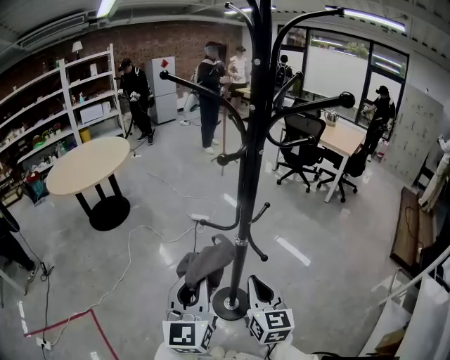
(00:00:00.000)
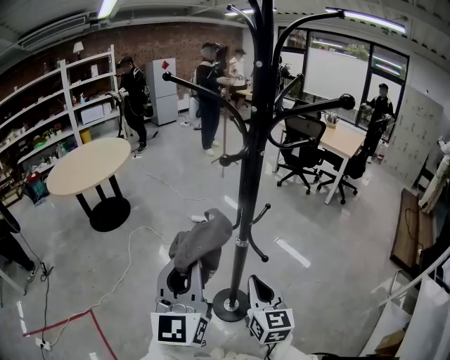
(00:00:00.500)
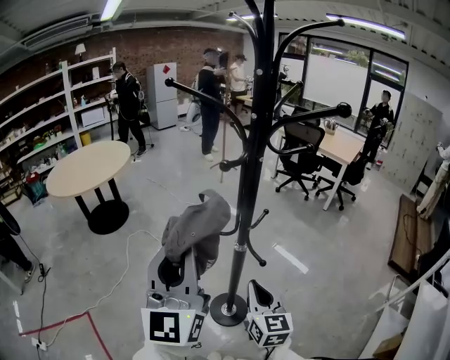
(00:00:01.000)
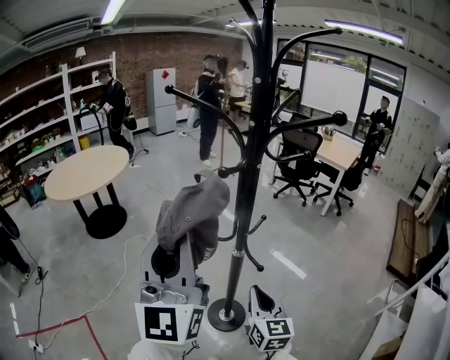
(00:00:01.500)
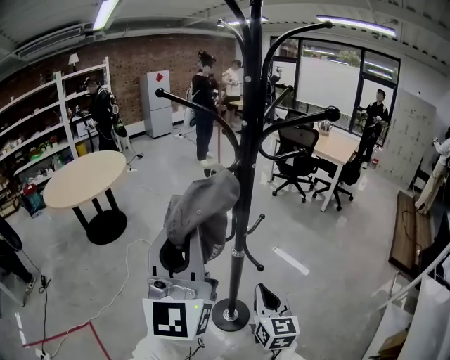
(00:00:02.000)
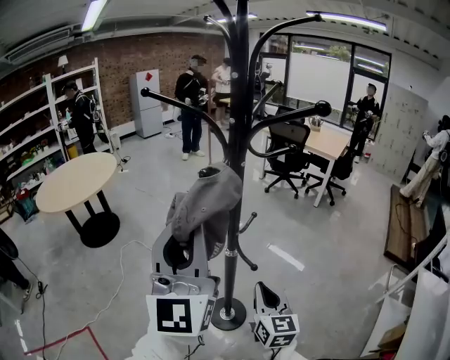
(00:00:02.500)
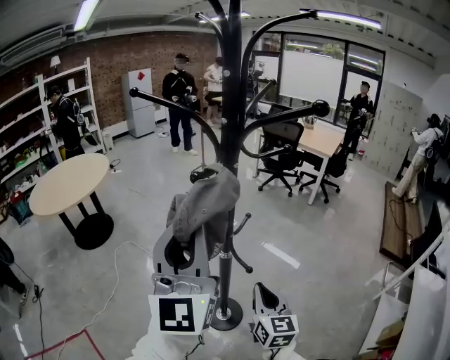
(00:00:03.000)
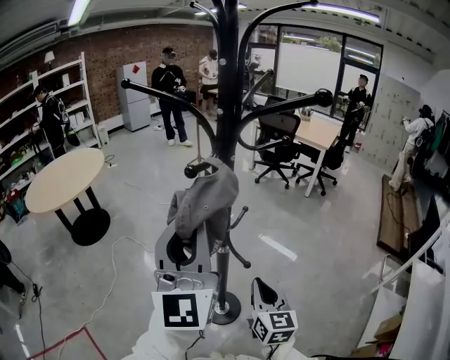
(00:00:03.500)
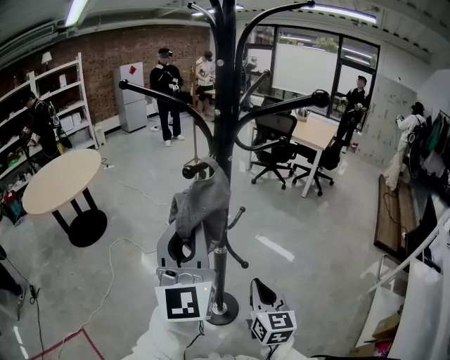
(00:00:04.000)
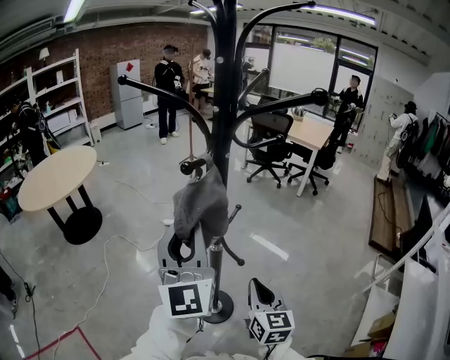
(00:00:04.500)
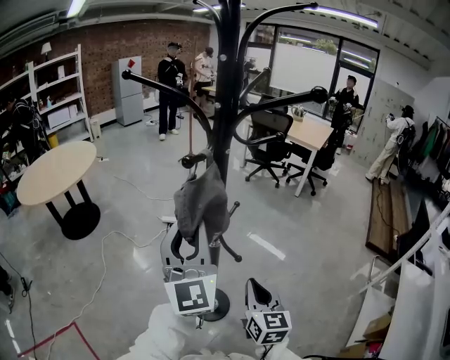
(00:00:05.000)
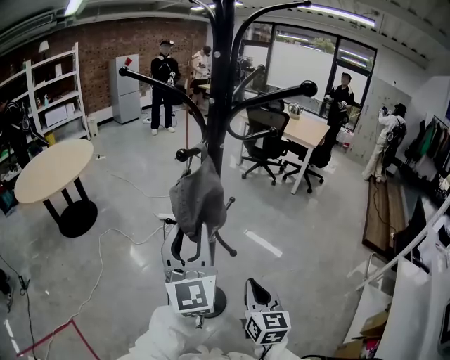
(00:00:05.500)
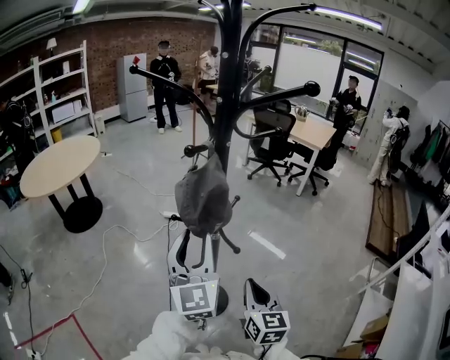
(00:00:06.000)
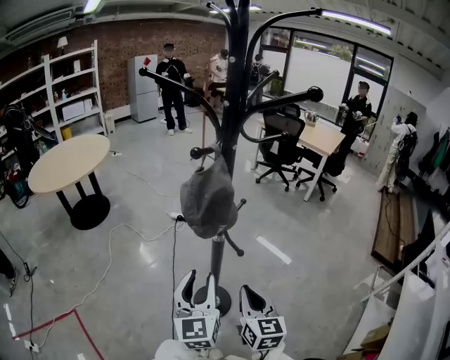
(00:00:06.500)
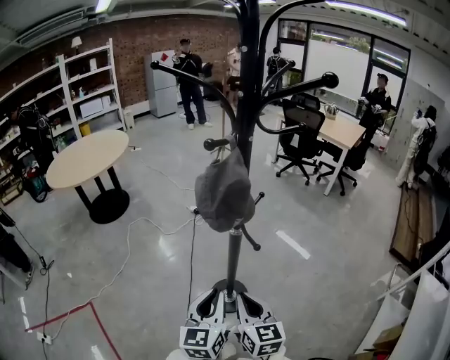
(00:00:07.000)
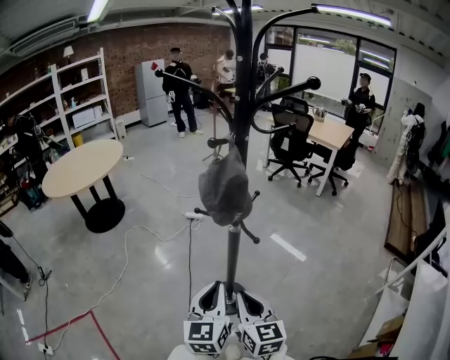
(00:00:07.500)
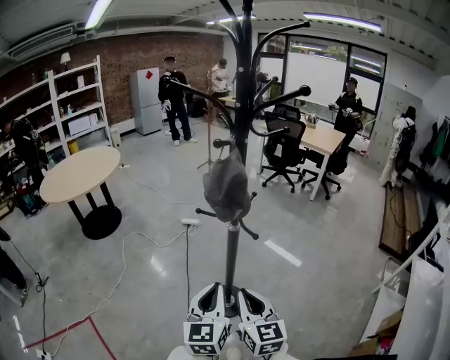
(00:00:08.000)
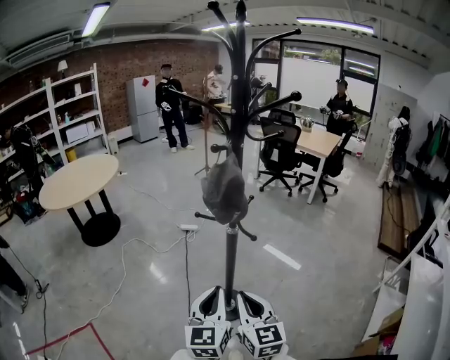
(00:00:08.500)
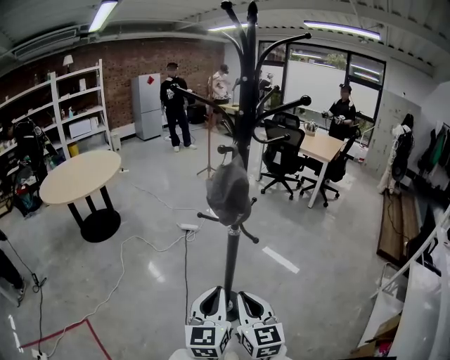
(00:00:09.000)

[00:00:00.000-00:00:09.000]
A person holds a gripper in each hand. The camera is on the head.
00:00:00.000 to 00:00:02.000: The left gripper travels upward by some 20 cm, and rotates approximately 30 degrees.
00:00:02.000 to 00:00:04.500: The left gripper shifts roughly 10 cm downward and forward.
00:00:04.500 to 00:00:07.000: The left gripper shifts about 25 cm downward and backward, points its fingers about 30 degrees further downward, and opens and closes again, while the right gripper travels to the left and backward by about 10 cm.
00:00:07.000 to 00:00:09.000: The left gripper ends up about 5 cm from where it was; the right gripper shifts roughly 5 cm upward.

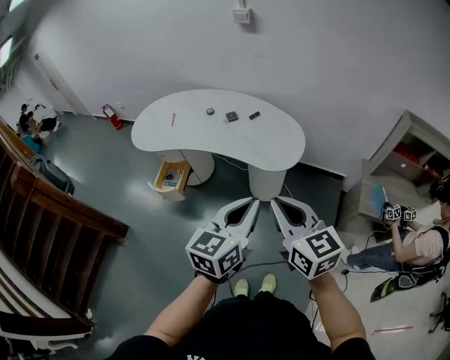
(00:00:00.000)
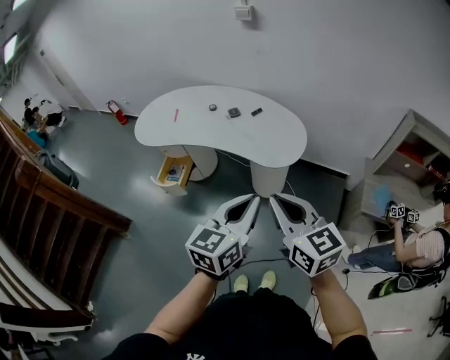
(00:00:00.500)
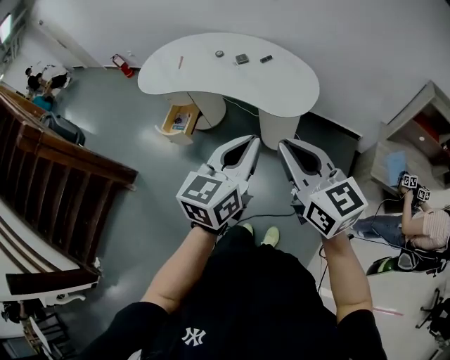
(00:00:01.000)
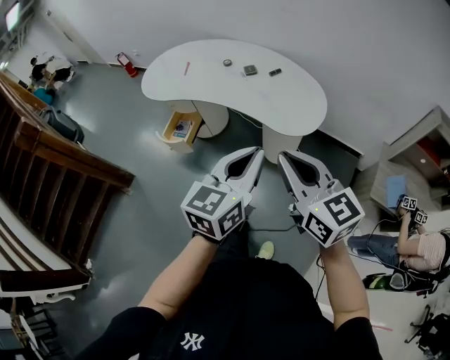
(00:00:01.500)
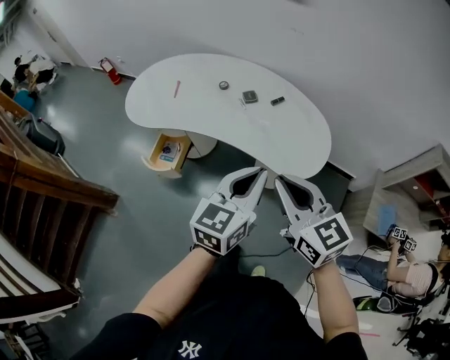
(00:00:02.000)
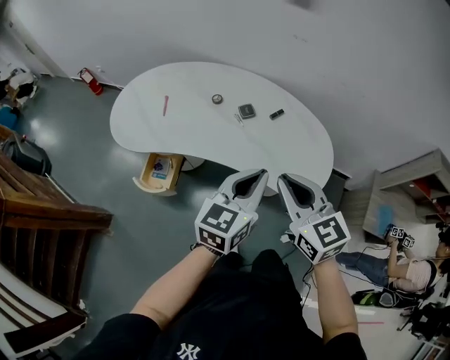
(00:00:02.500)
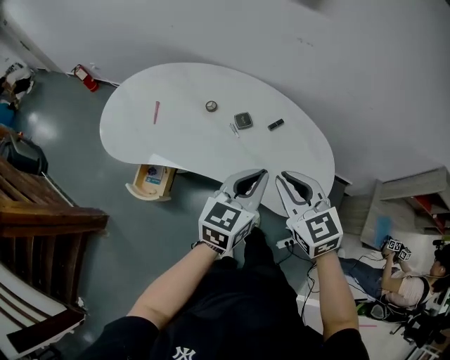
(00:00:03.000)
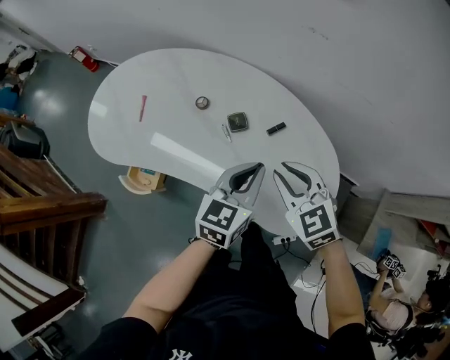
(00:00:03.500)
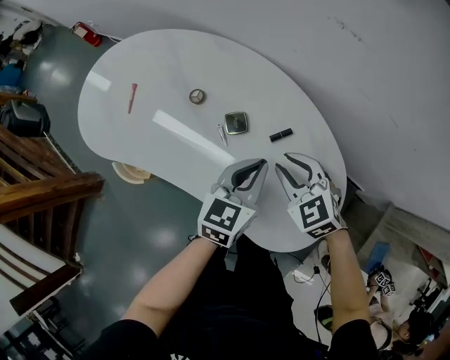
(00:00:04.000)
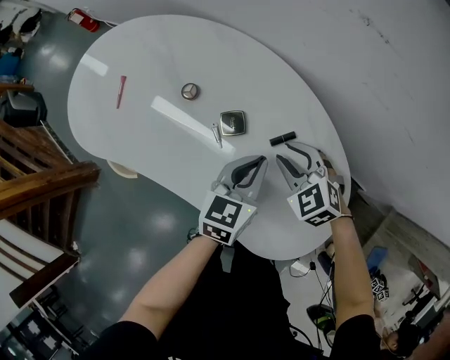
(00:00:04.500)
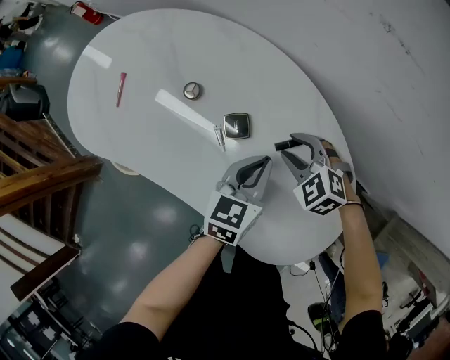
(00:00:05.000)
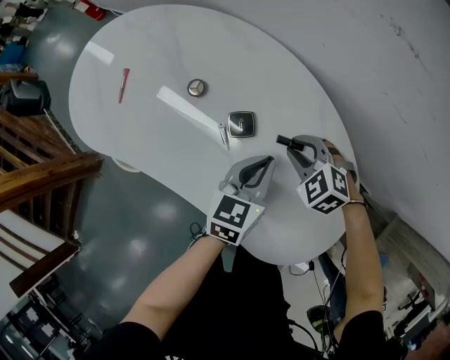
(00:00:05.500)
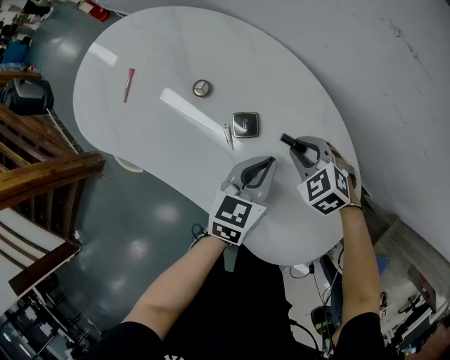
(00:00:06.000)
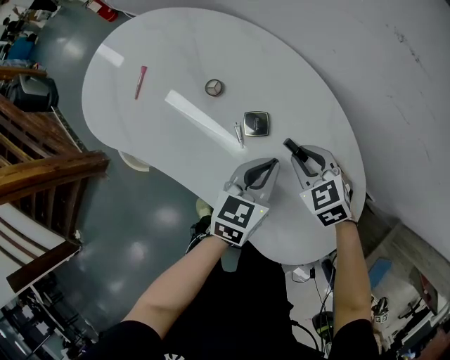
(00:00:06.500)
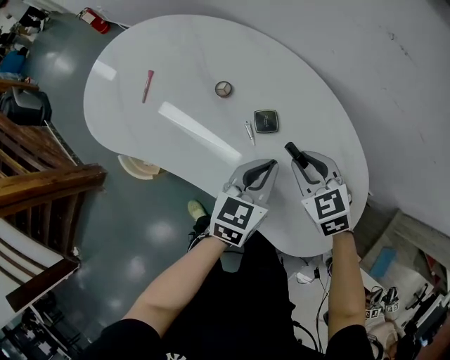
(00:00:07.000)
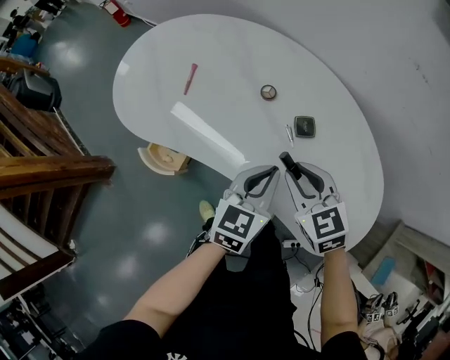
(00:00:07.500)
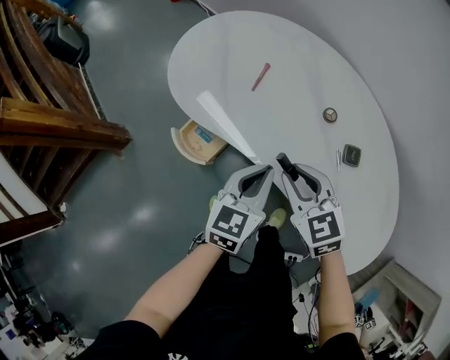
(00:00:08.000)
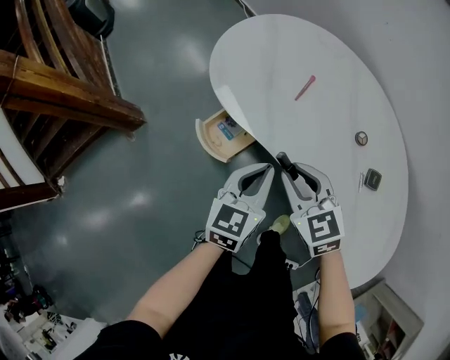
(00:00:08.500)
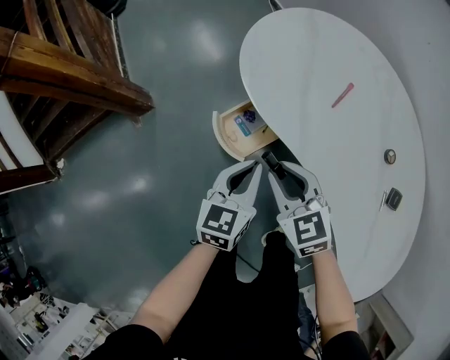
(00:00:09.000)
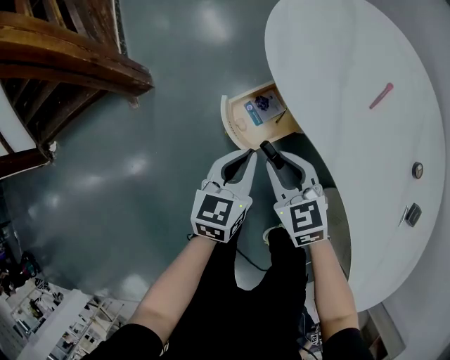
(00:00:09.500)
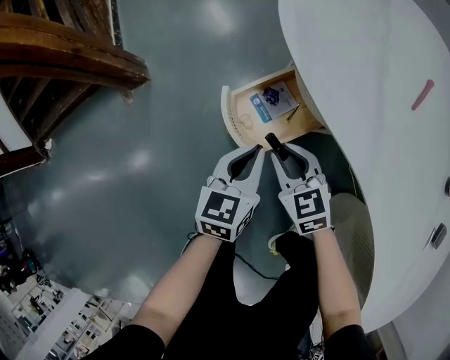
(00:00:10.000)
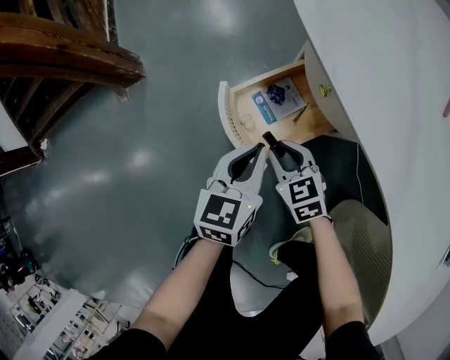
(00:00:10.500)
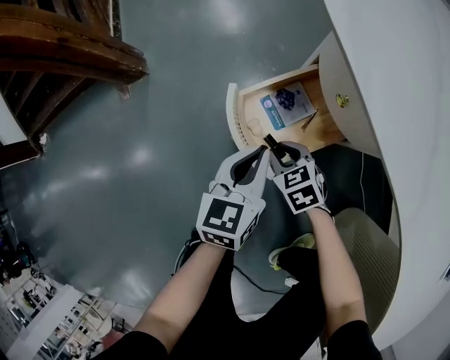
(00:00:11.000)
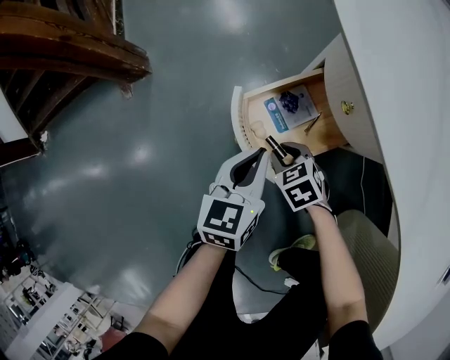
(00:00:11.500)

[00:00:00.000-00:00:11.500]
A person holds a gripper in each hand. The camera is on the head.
00:00:00.000 to 00:00:02.000: The grippers both shift forward by some 20 cm.
00:00:02.000 to 00:00:04.000: The grippers both shift forward and downward by roughly 40 cm. The right gripper rotates some 40 degrees, and opens up.
00:00:04.000 to 00:00:06.000: The right gripper goes some 15 cm downward and forward; the left gripper is displaced downward by some 10 cm.
00:00:06.000 to 00:00:07.500: The right gripper moves to the left, upward and backward, about 25 cm, and rotates approximately 30 degrees; the left gripper heads to the left and upward, covering roughly 20 cm.
00:00:07.500 to 00:00:09.500: Both grippers are carried roughly 40 cm. The left gripper rotates some 40 degrees. The right gripper swivels some 30 degrees.
00:00:09.500 to 00:00:11.500: The right gripper travels downward by roughly 35 cm, and rotates approximately 30 degrees. The left gripper is displaced downward by about 20 cm.

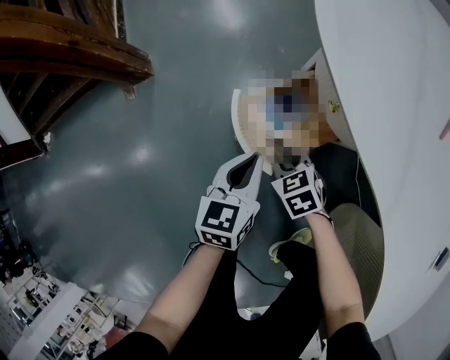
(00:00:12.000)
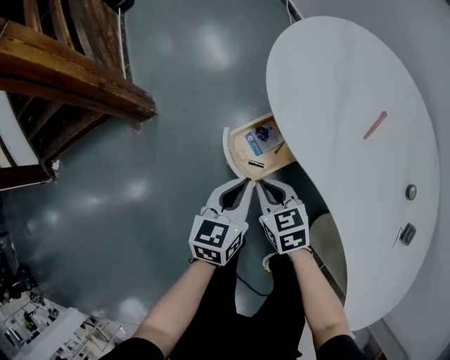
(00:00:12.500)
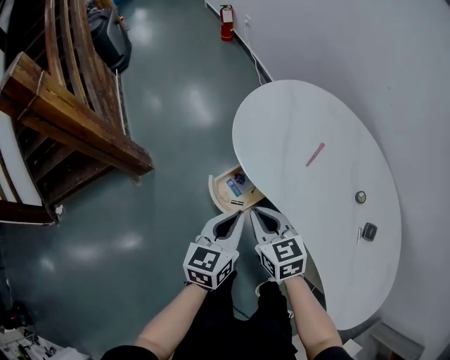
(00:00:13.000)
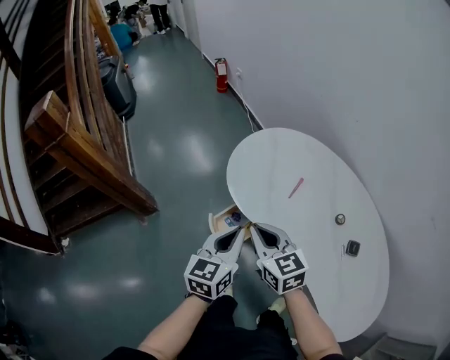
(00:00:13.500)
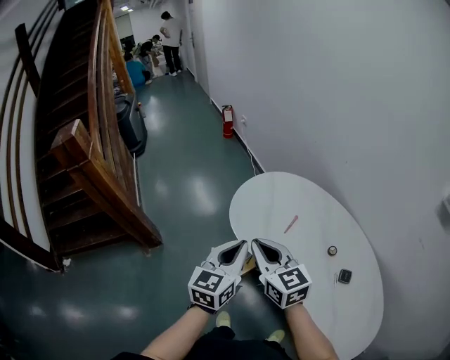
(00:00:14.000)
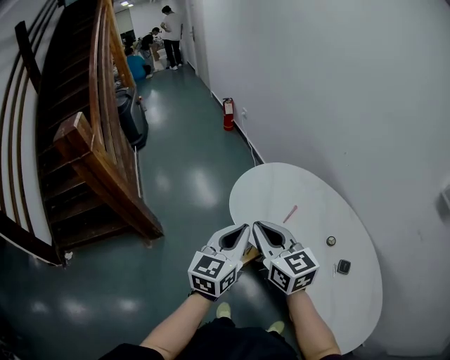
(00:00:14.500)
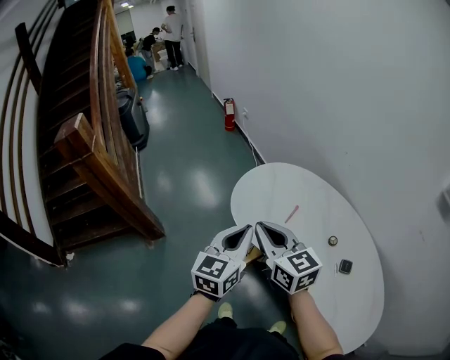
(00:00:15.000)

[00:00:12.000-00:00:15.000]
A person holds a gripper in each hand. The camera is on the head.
00:00:12.000 to 00:00:13.500: The grippers both shift upward by about 50 cm. The left gripper swivels about 20 degrees; the right gripper tips its fingers upward by about 40 degrees.
00:00:13.500 to 00:00:15.000: The two grippers go about 15 cm upward.

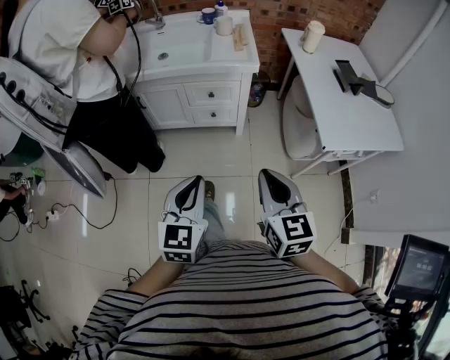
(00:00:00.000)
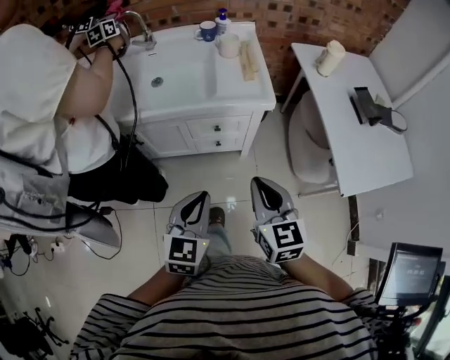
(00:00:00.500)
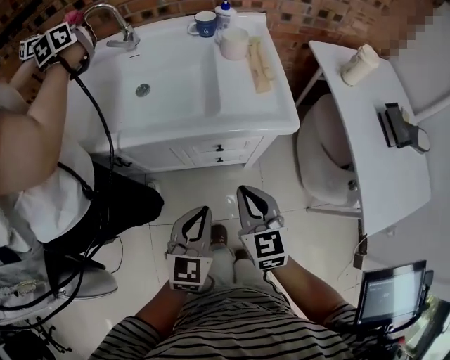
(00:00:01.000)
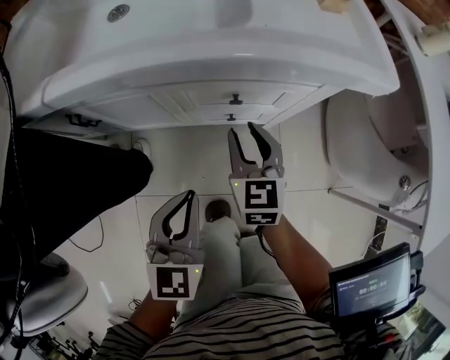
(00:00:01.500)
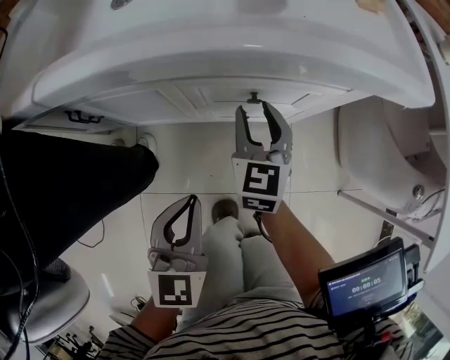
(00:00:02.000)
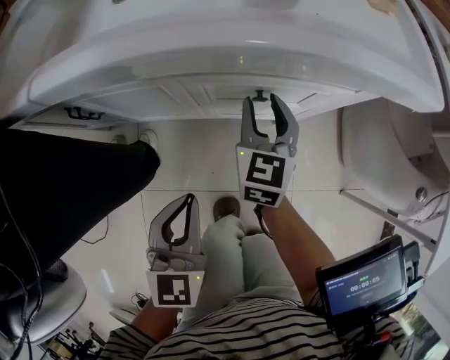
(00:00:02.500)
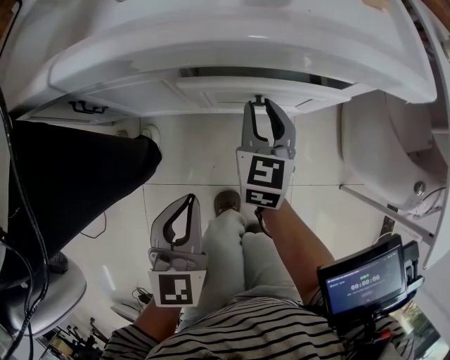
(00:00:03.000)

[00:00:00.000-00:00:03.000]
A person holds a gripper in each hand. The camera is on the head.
00:00:00.000 to 00:00:01.500: The grippers both shift forward and downward by roughly 50 cm. The right gripper opens up.
